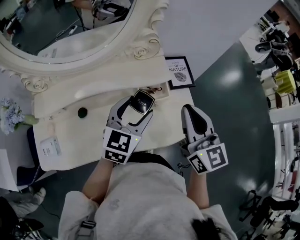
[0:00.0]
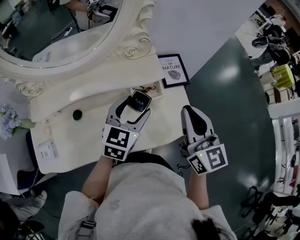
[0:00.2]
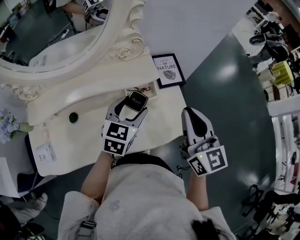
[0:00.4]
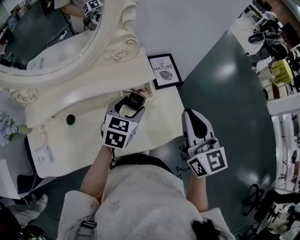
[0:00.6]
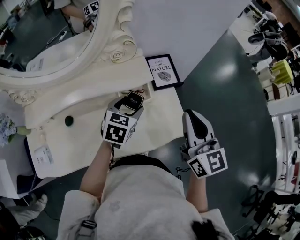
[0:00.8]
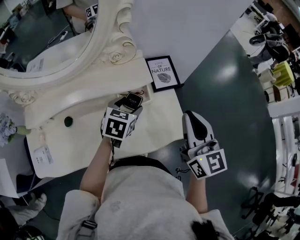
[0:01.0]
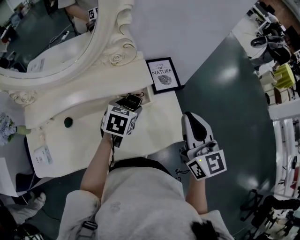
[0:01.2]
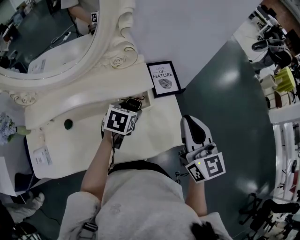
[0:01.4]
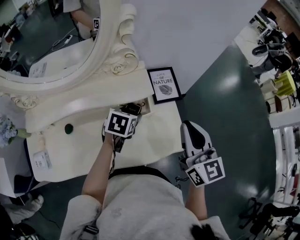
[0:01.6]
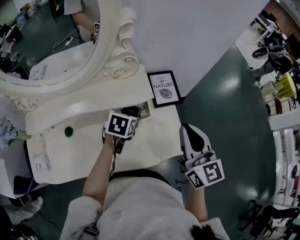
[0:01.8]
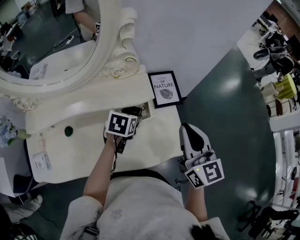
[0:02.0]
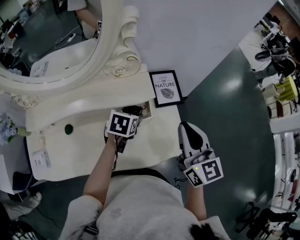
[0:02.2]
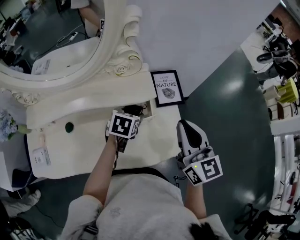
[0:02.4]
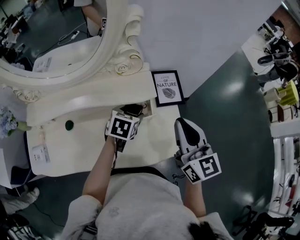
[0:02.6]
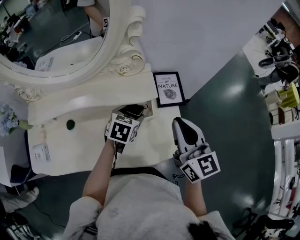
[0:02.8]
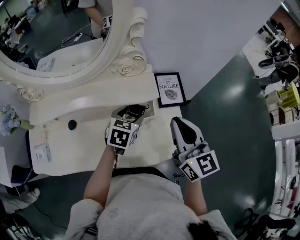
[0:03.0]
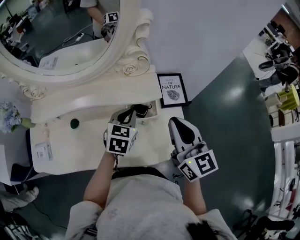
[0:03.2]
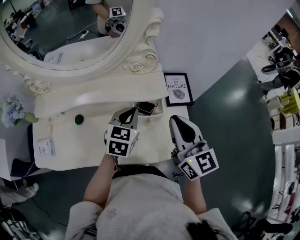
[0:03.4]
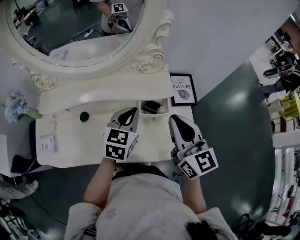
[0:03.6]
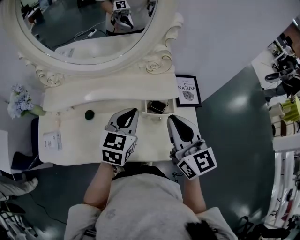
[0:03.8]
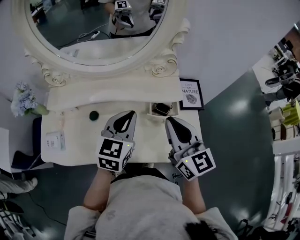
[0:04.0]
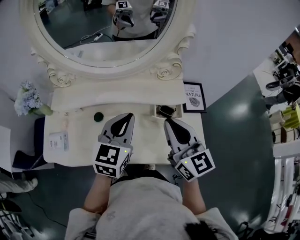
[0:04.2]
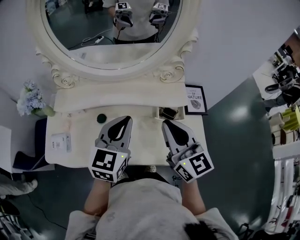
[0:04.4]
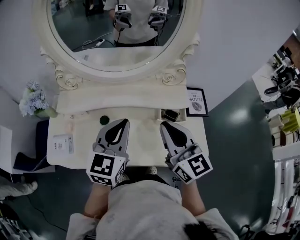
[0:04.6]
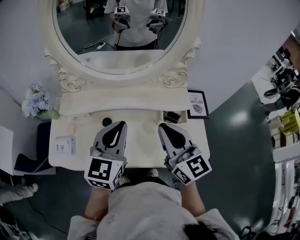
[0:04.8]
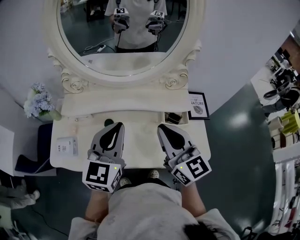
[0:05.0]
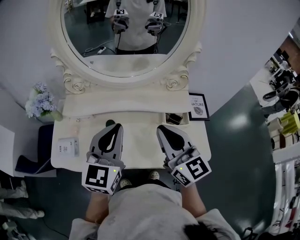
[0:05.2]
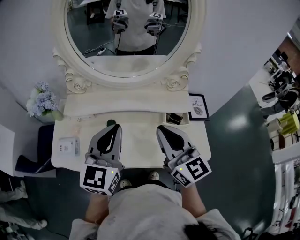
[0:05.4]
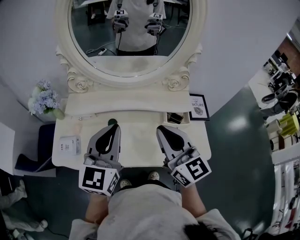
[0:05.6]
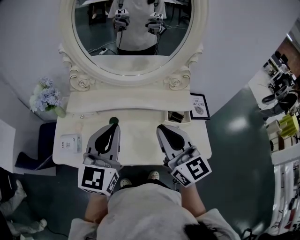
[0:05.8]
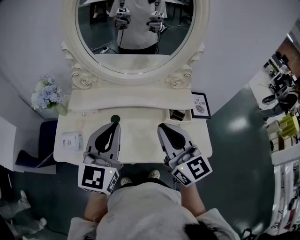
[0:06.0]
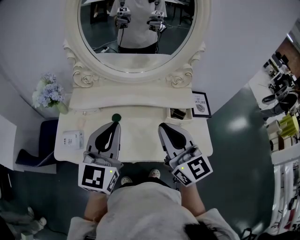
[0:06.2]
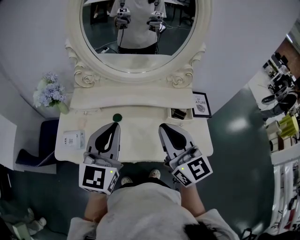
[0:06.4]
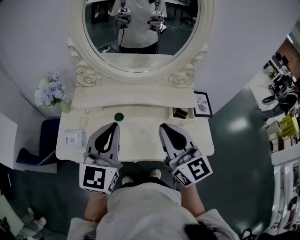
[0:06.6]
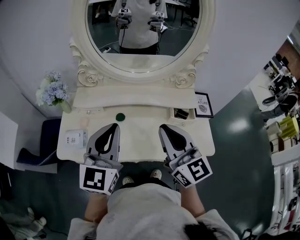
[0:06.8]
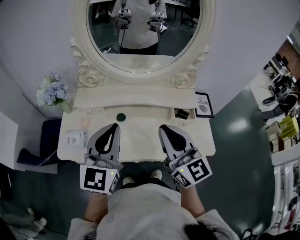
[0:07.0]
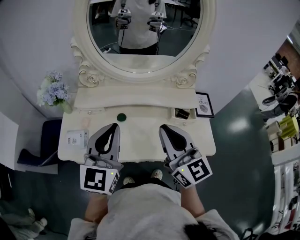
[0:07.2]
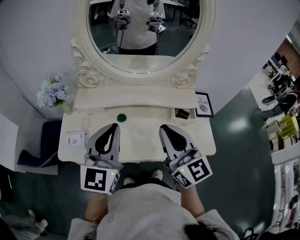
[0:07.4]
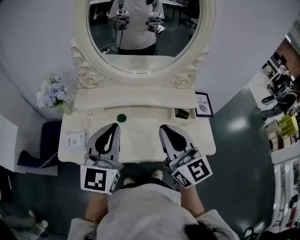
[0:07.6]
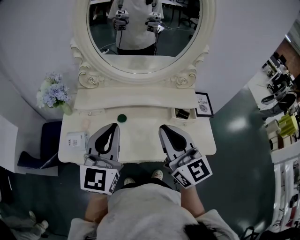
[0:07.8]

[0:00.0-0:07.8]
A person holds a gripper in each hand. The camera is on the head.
0:00.0 to 0:01.6: The left gripper travels downward and forward by about 15 cm, and points its fingers about 30 degrees further downward. The right gripper moves to the right, approximately 10 cm.
0:01.6 to 0:03.2: The left gripper moves upward, about 5 cm, turns by roughly 20 degrees, and closes up. The right gripper shifts about 5 cm to the left.
0:03.2 to 0:04.6: The right gripper heads to the left, covering roughly 20 cm. Meanwhile the left gripper moves to the left, upward and backward, some 25 cm, and changes its angle by roughly 20 degrees.
0:04.6 to 0:06.2: The right gripper is displaced to the left and backward by about 10 cm. The left gripper moves to the left, upward and backward, roughly 15 cm.
0:06.2 to 0:07.8: The grippers make only small movements.

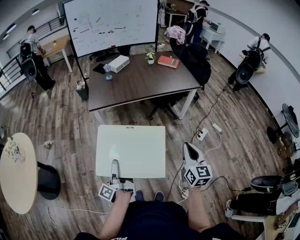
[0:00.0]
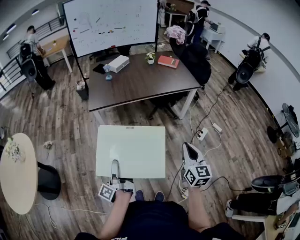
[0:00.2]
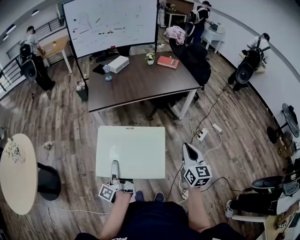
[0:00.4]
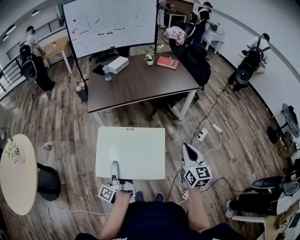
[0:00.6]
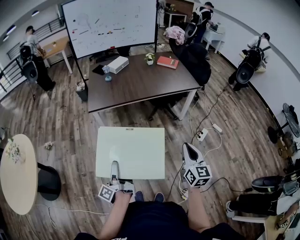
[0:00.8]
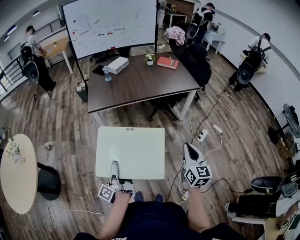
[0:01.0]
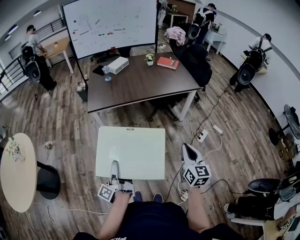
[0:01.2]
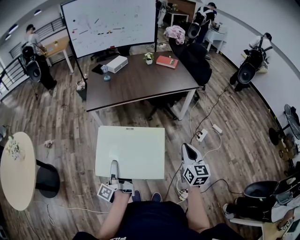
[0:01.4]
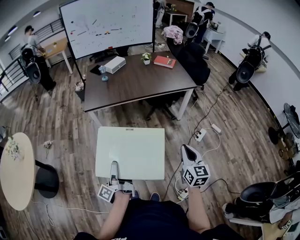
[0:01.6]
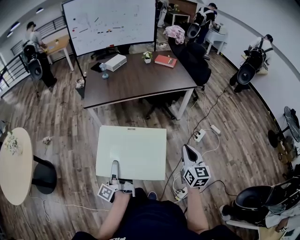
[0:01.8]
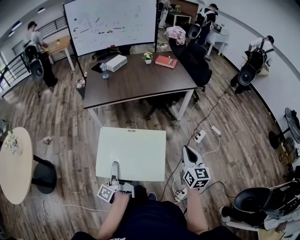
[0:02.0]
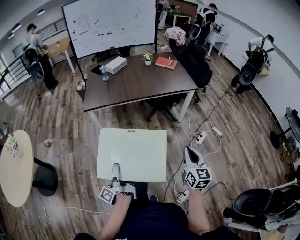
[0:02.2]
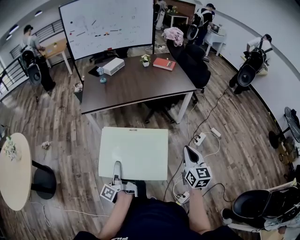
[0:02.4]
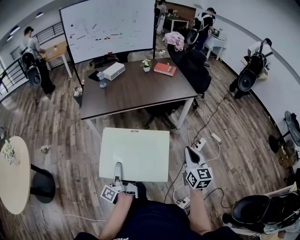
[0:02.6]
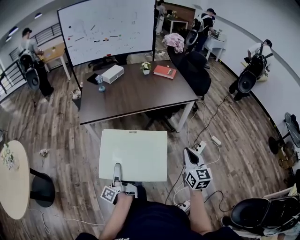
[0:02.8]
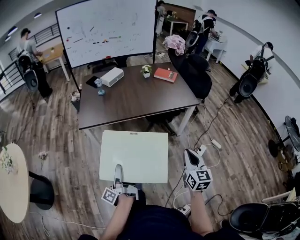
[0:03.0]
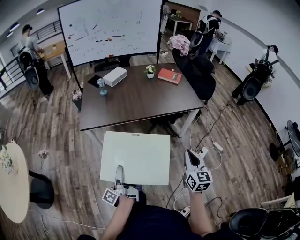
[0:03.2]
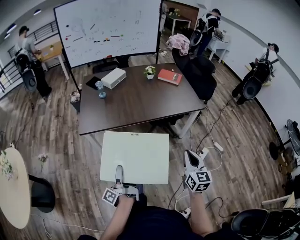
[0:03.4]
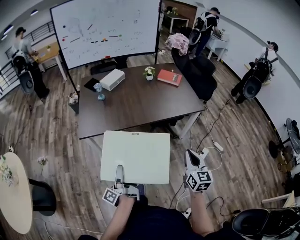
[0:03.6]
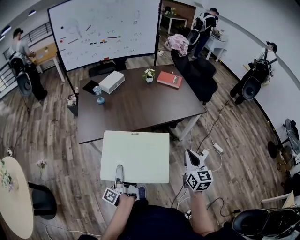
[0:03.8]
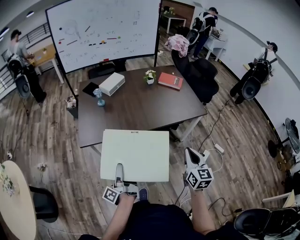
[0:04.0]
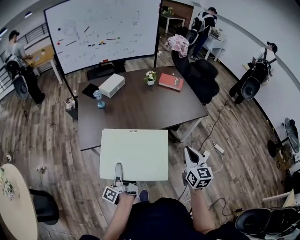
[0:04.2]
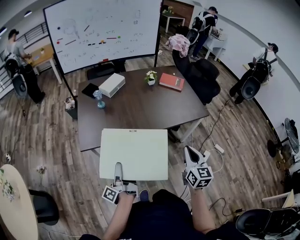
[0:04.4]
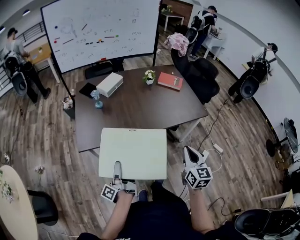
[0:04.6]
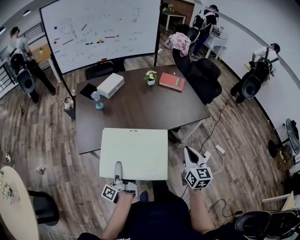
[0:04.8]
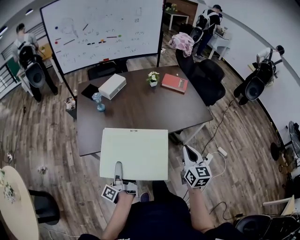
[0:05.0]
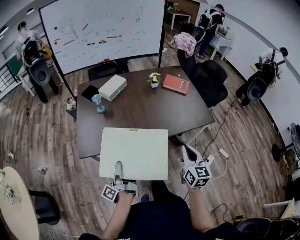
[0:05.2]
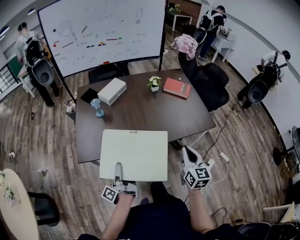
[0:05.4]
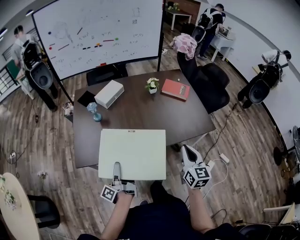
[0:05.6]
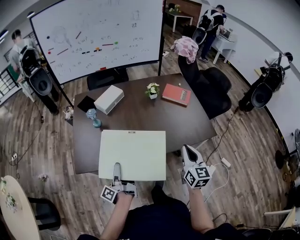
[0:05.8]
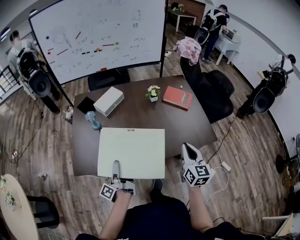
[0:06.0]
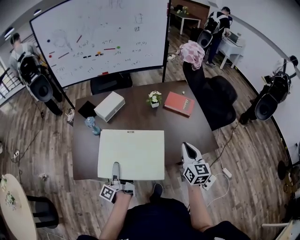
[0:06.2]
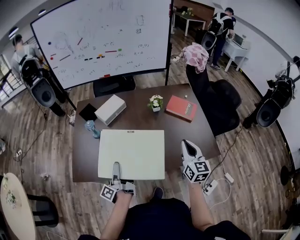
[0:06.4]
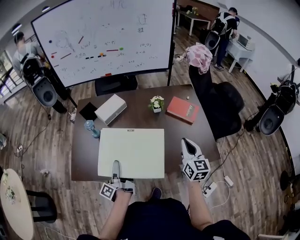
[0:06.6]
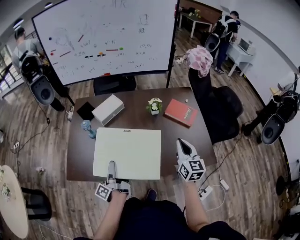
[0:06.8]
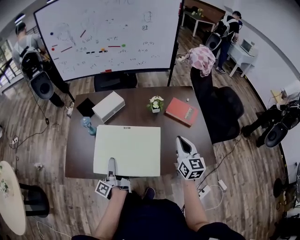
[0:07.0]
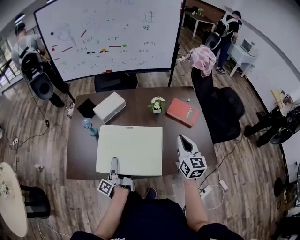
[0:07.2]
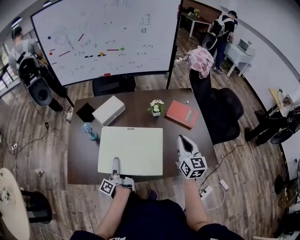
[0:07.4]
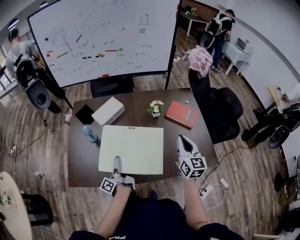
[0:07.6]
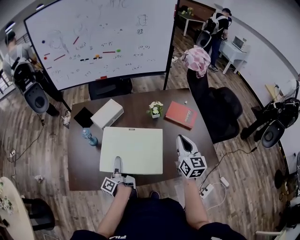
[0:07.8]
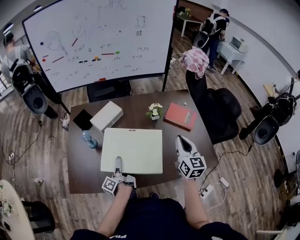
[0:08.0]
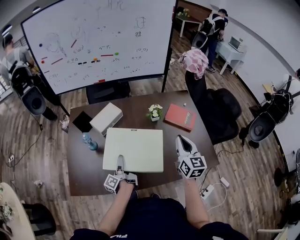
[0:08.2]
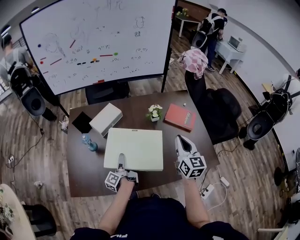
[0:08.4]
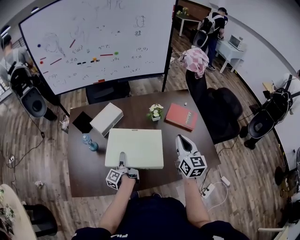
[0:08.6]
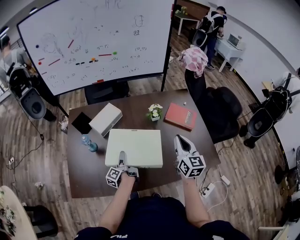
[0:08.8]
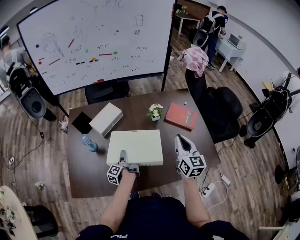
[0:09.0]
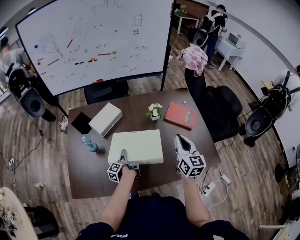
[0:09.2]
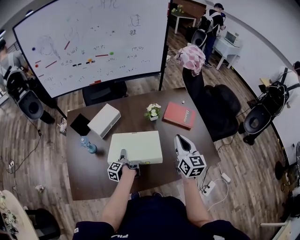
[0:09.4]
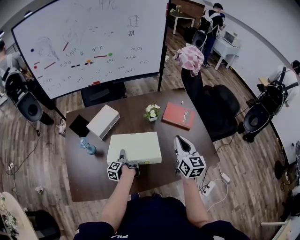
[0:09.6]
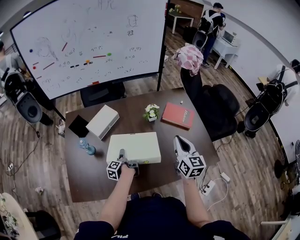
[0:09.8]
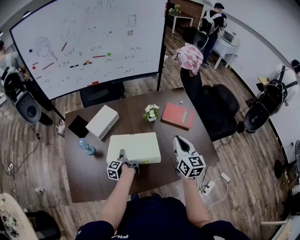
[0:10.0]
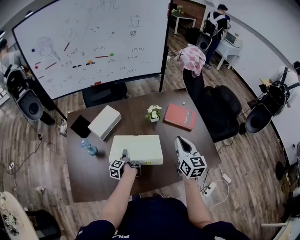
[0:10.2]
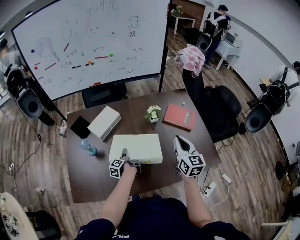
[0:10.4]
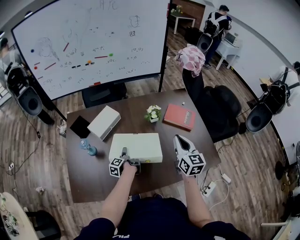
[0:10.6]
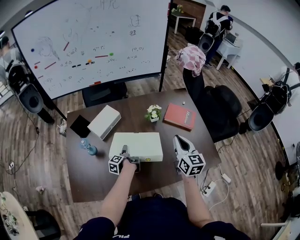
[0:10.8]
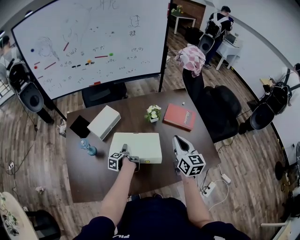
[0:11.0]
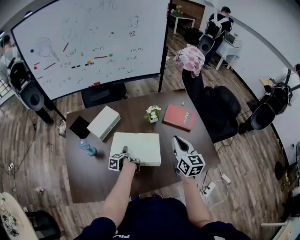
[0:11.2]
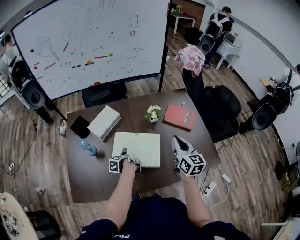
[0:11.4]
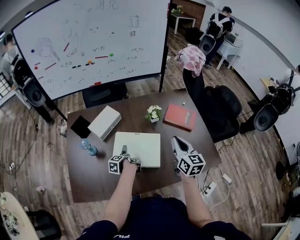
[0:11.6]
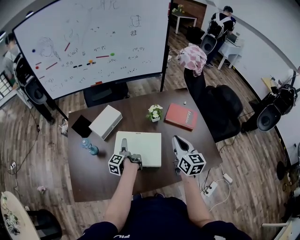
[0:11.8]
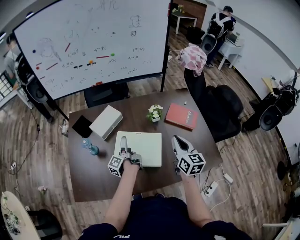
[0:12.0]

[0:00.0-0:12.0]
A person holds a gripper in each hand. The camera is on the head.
0:00.0 to 0:01.6: The right gripper moves about 10 cm.
0:01.6 to 0:03.0: The right gripper ends up about 15 cm from where it was.
0:03.0 to 0:04.4: The right gripper shifts by roughly 25 cm.
0:04.4 to 0:06.0: The right gripper shifts by approximately 30 cm.
0:06.0 to 0:07.6: The right gripper changes place by some 20 cm.

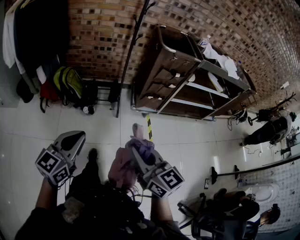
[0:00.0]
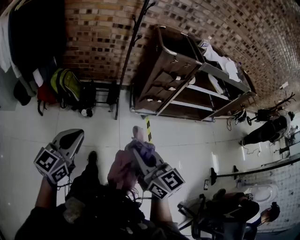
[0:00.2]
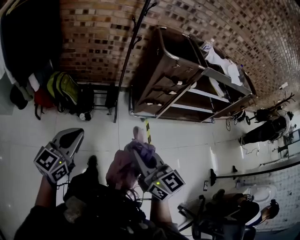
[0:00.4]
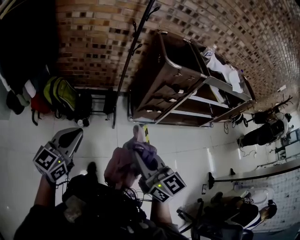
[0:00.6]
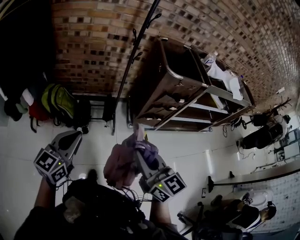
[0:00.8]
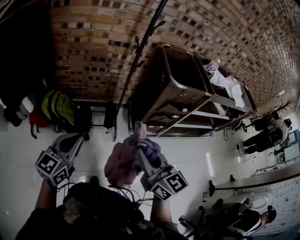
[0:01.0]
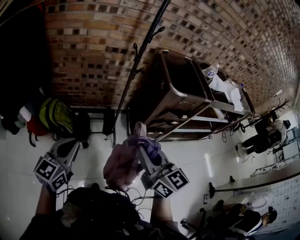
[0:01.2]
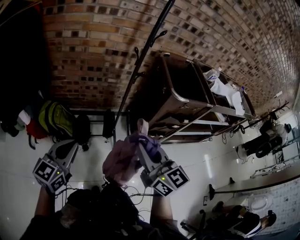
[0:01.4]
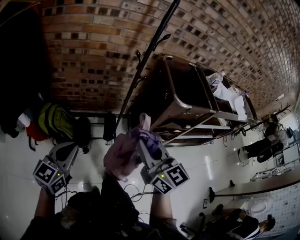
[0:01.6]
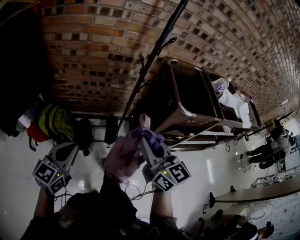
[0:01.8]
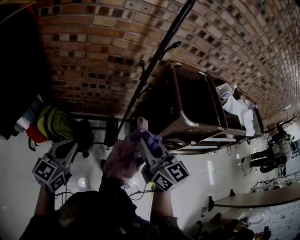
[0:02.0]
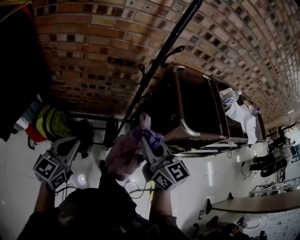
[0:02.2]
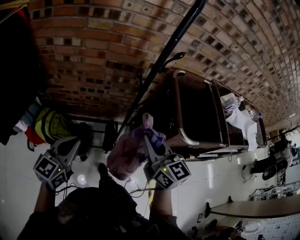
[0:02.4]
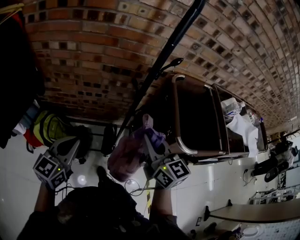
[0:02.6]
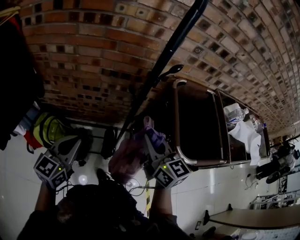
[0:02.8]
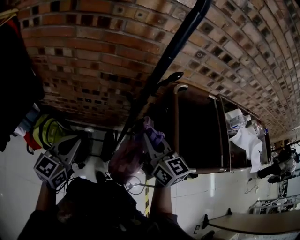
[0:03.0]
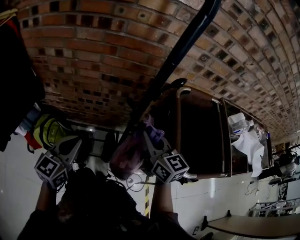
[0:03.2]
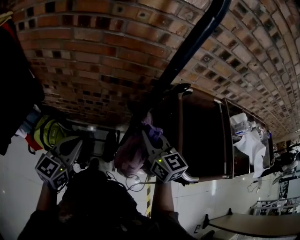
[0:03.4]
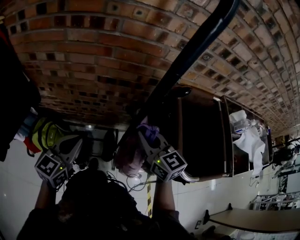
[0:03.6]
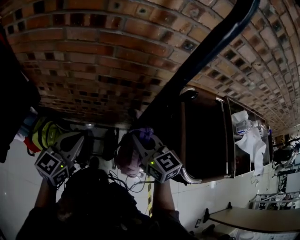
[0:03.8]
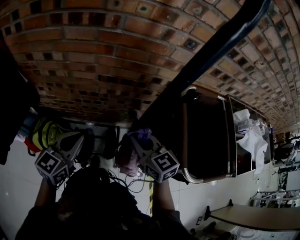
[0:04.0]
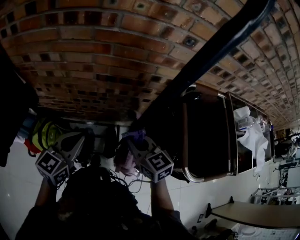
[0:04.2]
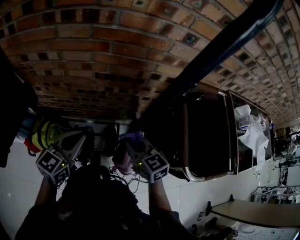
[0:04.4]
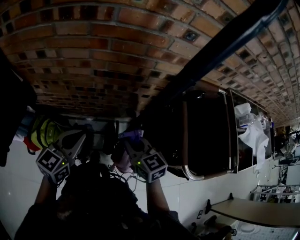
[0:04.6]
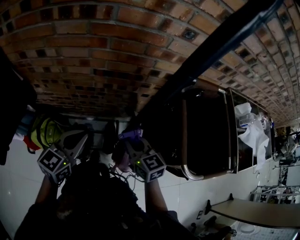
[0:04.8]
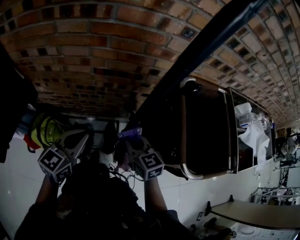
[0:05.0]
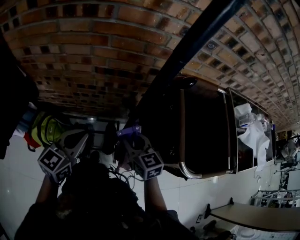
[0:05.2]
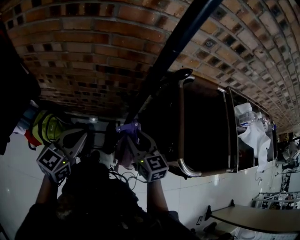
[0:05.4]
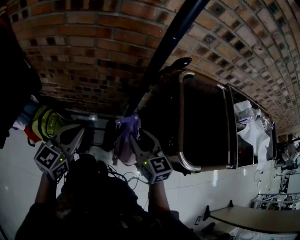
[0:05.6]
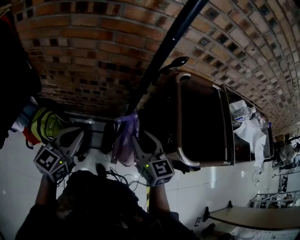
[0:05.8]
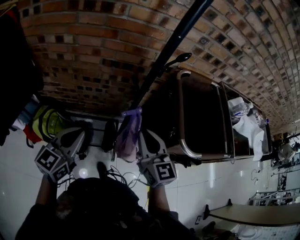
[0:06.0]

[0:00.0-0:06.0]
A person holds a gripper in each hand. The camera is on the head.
0:00.0 to 0:01.6: The pair of grippers is taken forward, roughly 50 cm.
0:01.6 to 0:03.0: The grippers both shift forward by roughly 35 cm.
0:03.0 to 0:04.4: The right gripper goes about 15 cm downward, to the left and forward. The left gripper is displaced forward by approximately 10 cm.
0:04.4 to 0:06.0: The left gripper goes approximately 15 cm backward. The right gripper moves backward, upward and to the right, roughly 15 cm, rotates approximately 20 degrees, and opens, then closes again.
